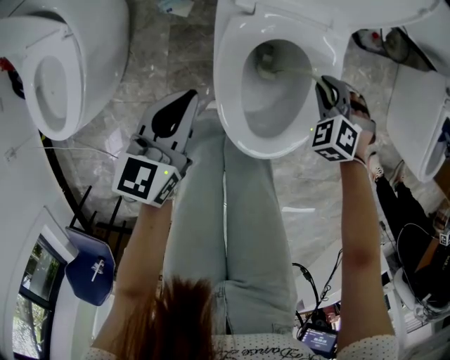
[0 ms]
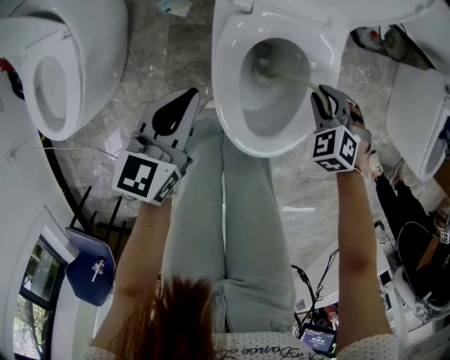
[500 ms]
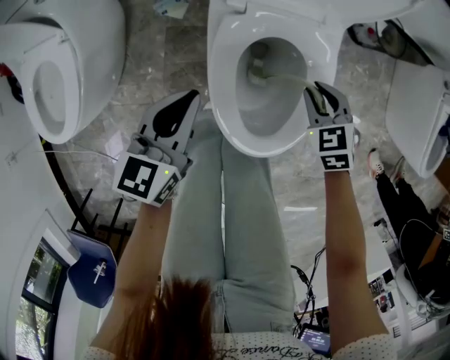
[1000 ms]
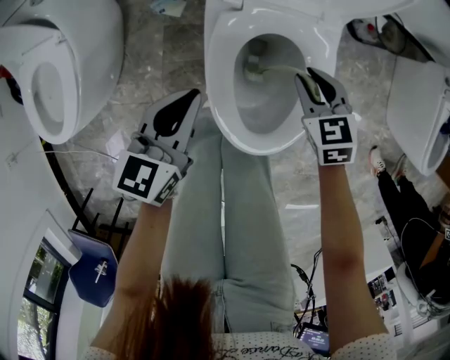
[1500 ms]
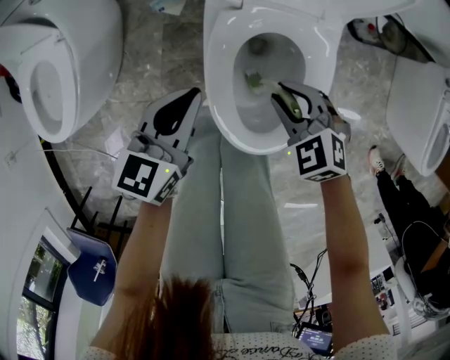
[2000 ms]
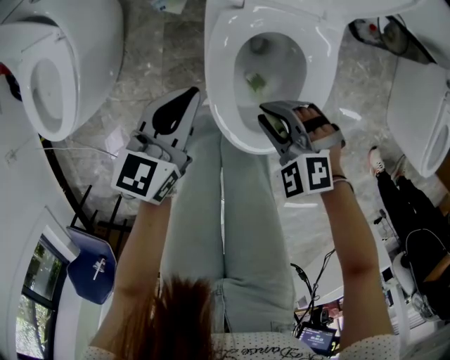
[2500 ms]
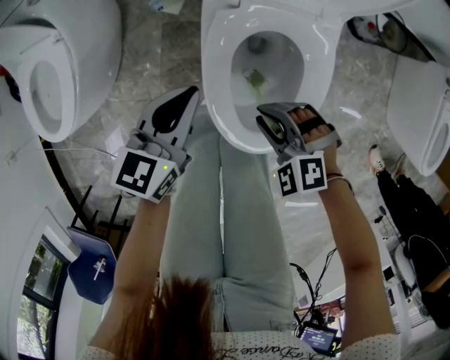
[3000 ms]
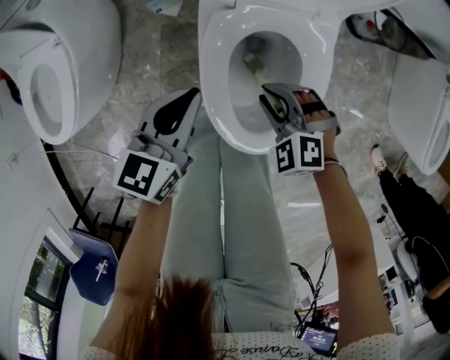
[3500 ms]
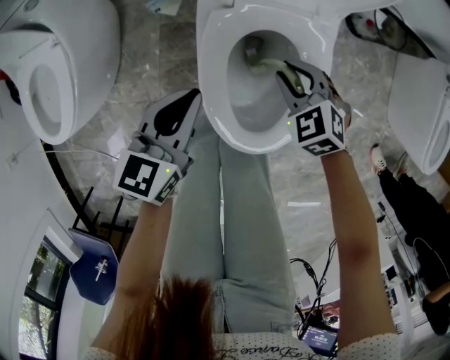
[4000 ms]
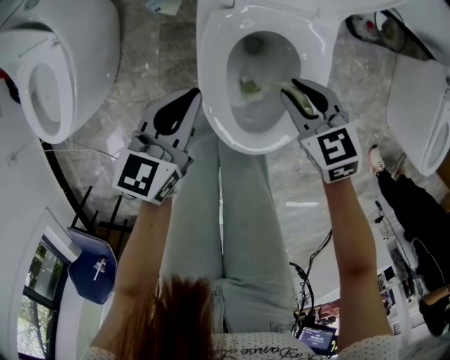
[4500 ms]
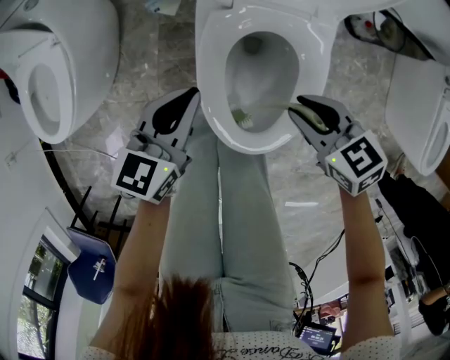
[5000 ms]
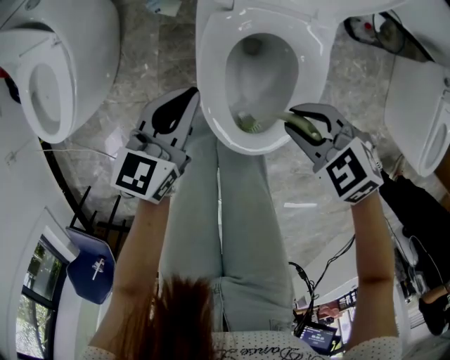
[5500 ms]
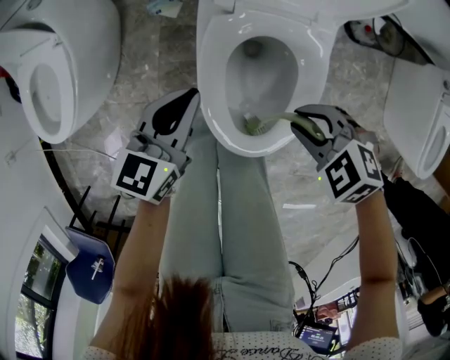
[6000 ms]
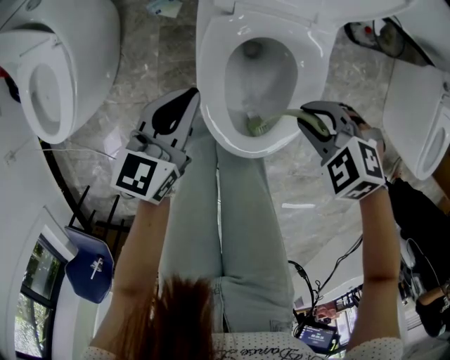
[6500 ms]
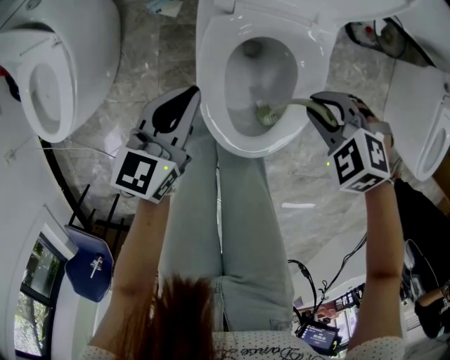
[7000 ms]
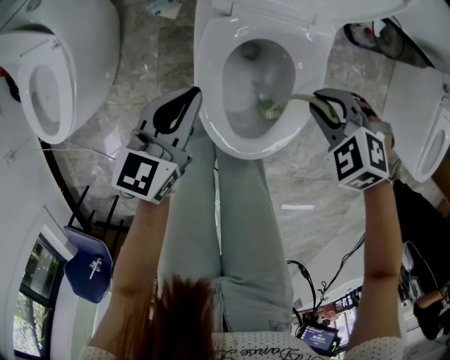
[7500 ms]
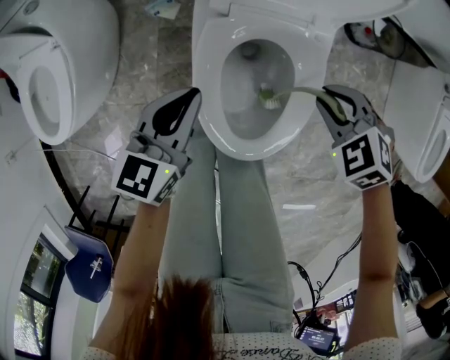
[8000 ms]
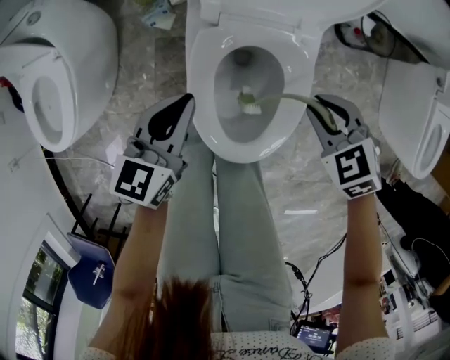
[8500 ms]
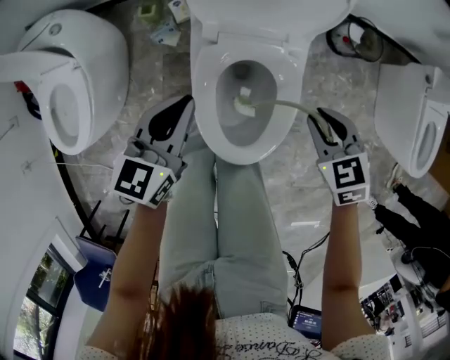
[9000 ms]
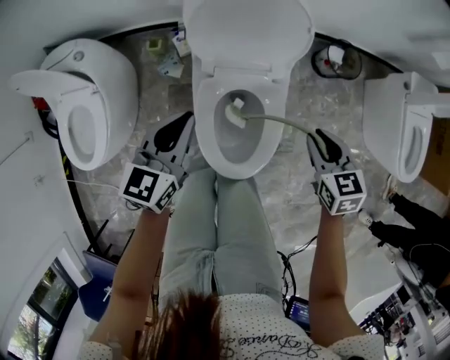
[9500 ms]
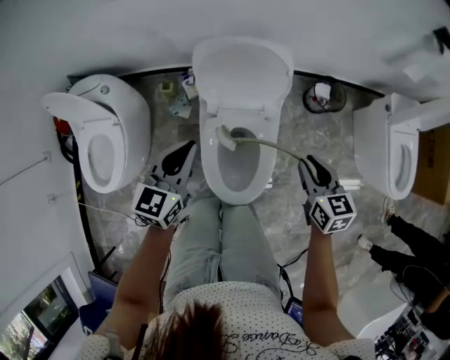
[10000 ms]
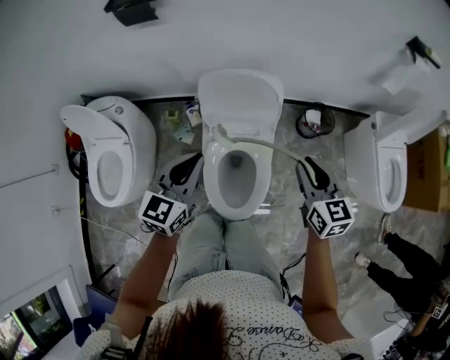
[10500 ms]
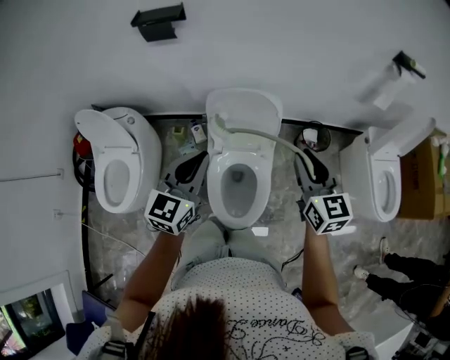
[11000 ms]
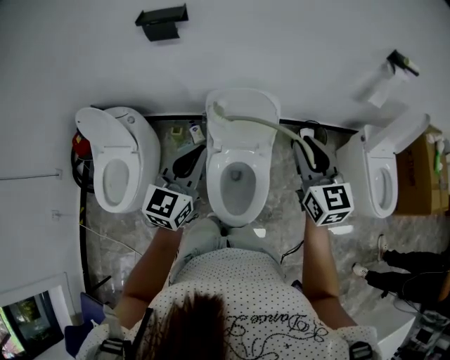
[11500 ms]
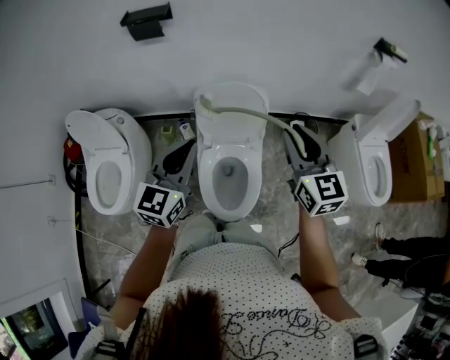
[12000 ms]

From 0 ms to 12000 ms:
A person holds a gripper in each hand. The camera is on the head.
From 0 ms to 2000 ms: The right gripper heads to the left, upward and backward, covering roughly 15 cm, and turns by some 30 degrees.
From 2000 ms to 4000 ms: The right gripper moves some 5 cm.
From 4000 ms to 6000 ms: The right gripper moves backward and upward, approximately 10 cm, and rotates about 30 degrees.
From 6000 ms to 8000 ms: The right gripper is displaced to the right by about 10 cm.
From 8000 ms to 10000 ms: The two grippers go some 25 cm upward. The right gripper points its fingers some 30 degrees further upward.
From 10000 ms to 12000 ms: Both grippers travel together upward, some 25 cm. The right gripper changes its angle by roughly 30 degrees.
